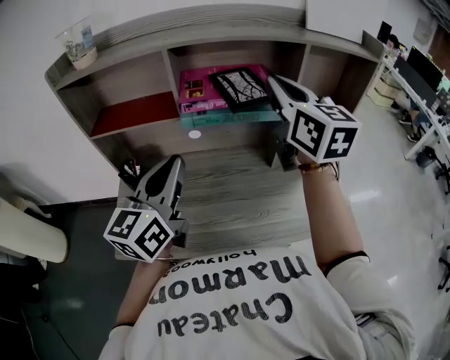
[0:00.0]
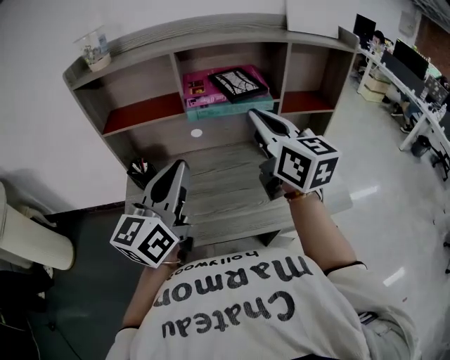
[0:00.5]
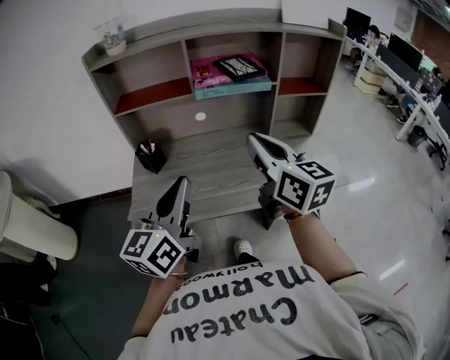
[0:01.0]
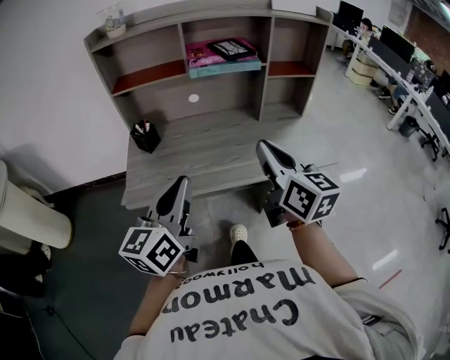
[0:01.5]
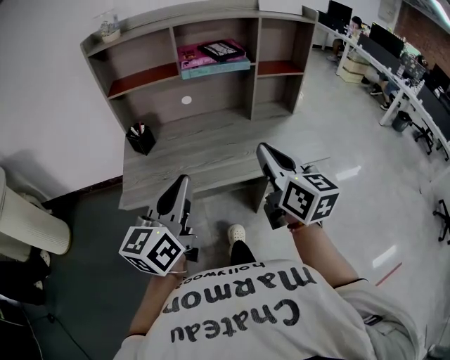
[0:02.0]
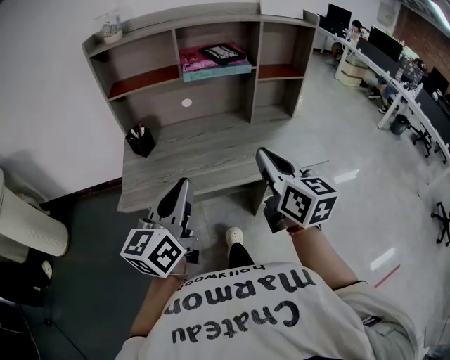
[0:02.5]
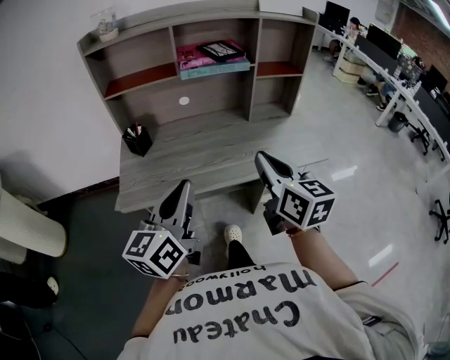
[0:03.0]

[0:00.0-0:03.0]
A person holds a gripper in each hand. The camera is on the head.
0:00.0 to 0:01.5: Both grippers travel together backward, some 30 cm.
0:01.5 to 0:03.0: The grippers move only a little.

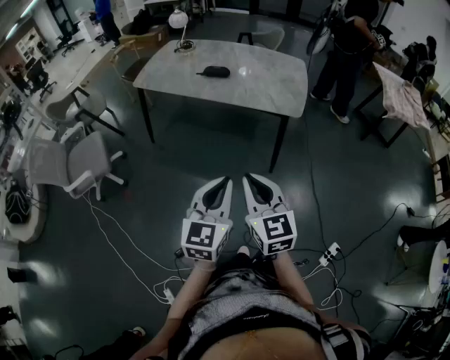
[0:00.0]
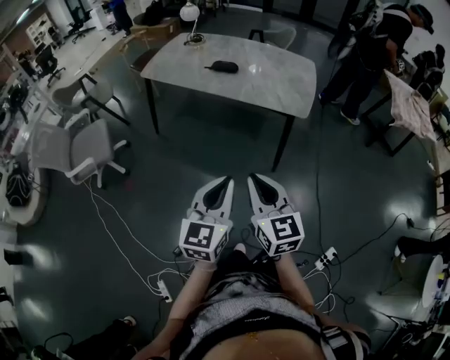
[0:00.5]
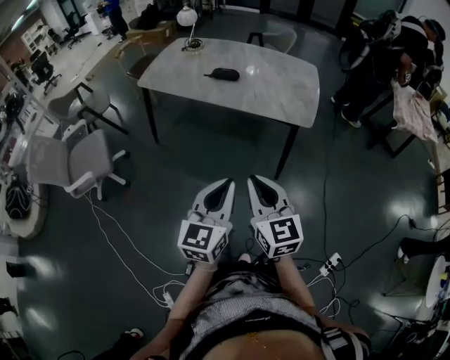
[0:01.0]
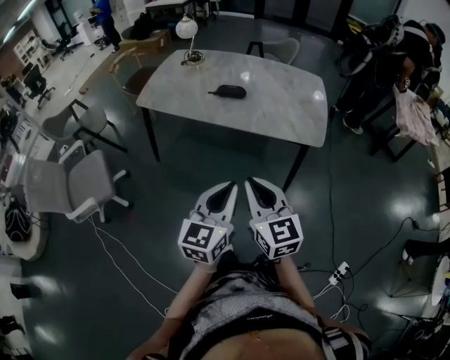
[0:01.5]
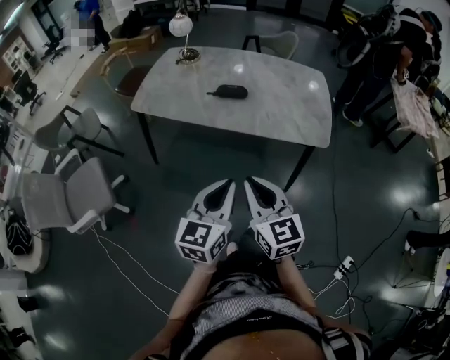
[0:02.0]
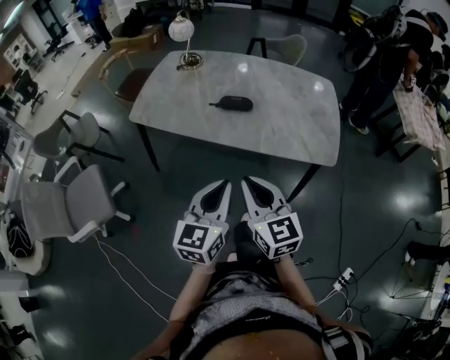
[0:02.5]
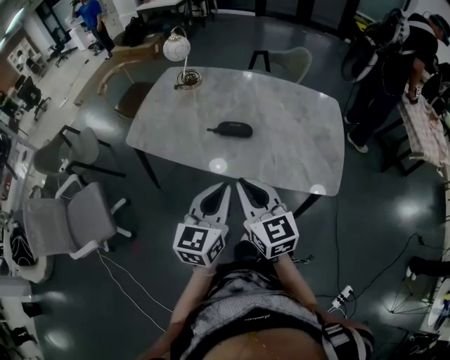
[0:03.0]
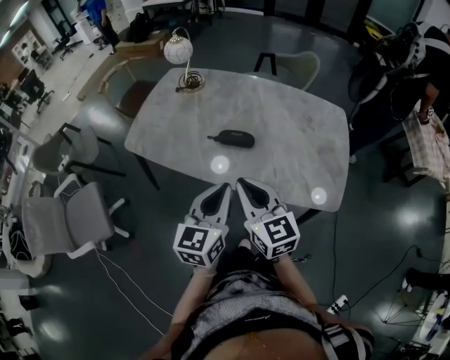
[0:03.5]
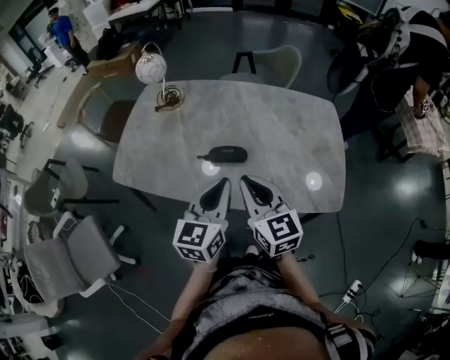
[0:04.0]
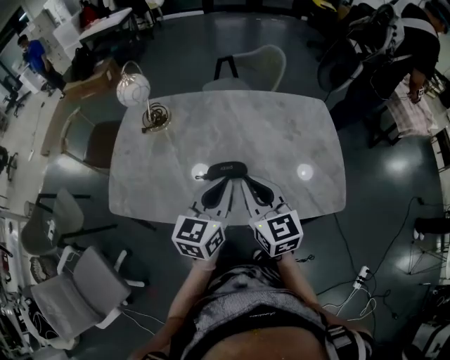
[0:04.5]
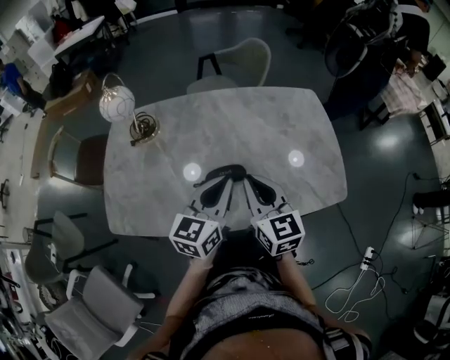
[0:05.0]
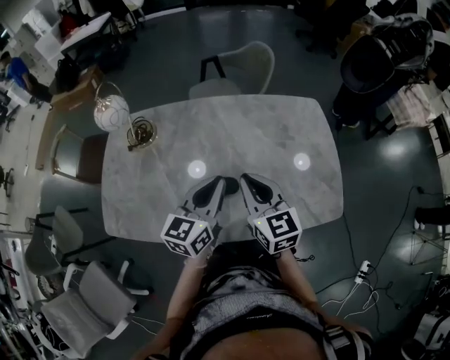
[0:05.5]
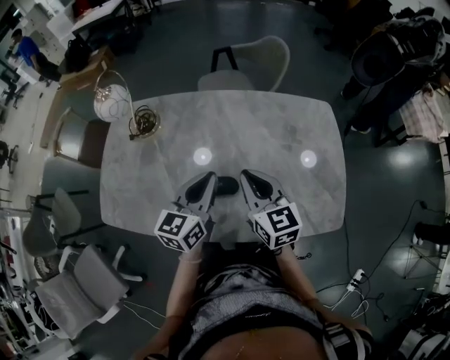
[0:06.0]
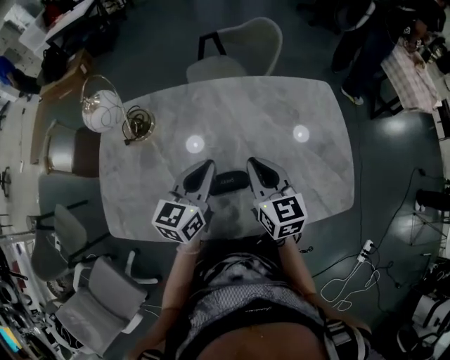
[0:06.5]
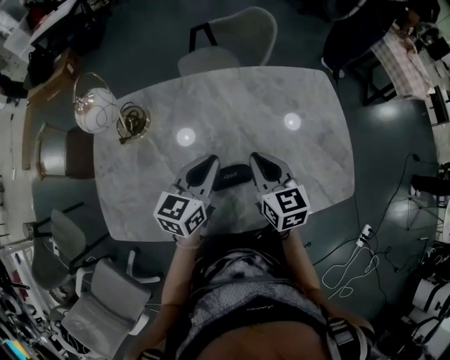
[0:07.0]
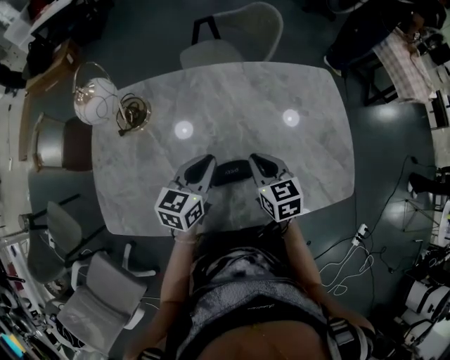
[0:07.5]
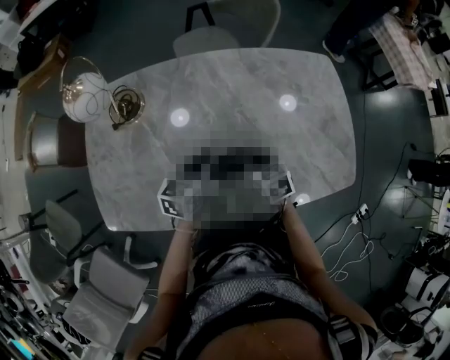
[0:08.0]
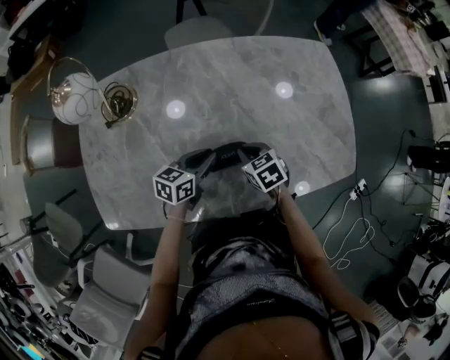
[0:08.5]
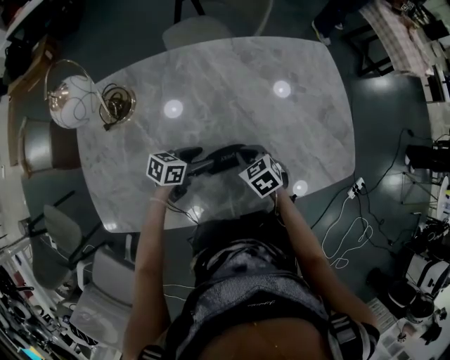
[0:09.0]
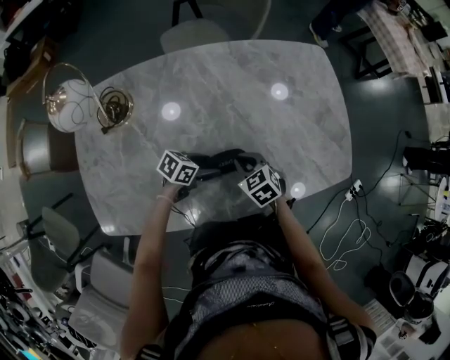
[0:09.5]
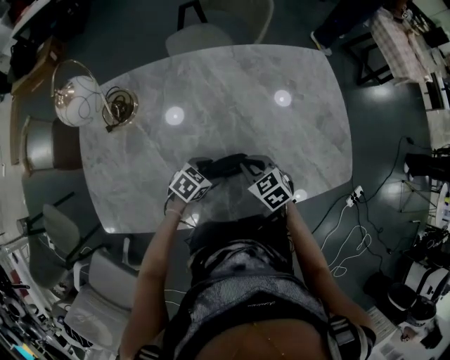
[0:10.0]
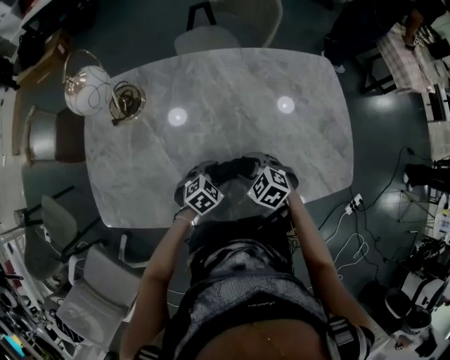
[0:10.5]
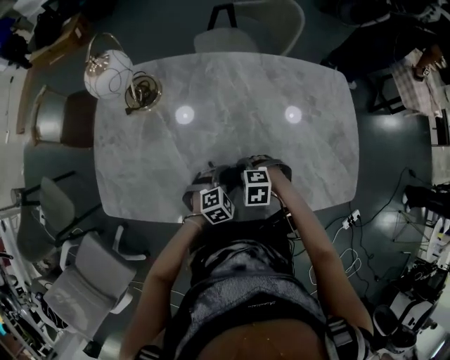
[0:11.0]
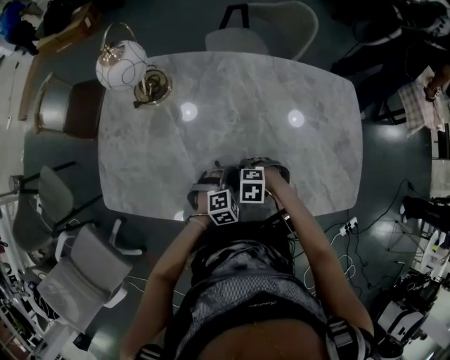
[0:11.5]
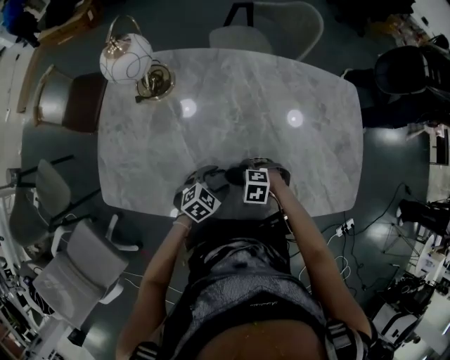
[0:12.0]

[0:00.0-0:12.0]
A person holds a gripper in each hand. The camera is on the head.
0:00.0 to 0:02.0: Both grippers move forward and to the left, some 25 cm.
0:02.0 to 0:04.0: The two grippers go some 35 cm forward.
0:04.0 to 0:06.0: Both grippers travel together forward, roughly 20 cm.
0:06.0 to 0:08.0: The right gripper moves downward, about 20 cm, and points its fingers approximately 30 degrees further downward. Meanwhile the left gripper shifts some 15 cm downward and to the left, and turns by roughly 20 degrees.
0:08.0 to 0:10.0: The left gripper goes some 10 cm downward, rotates some 40 degrees, and opens.
0:10.0 to 0:12.0: The left gripper ends up about 5 cm from where it was. Meanwhile the right gripper is displaced downward by roughly 10 cm, changes its angle by some 60 degrees, and opens up.

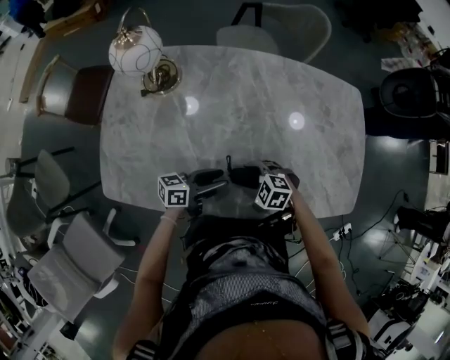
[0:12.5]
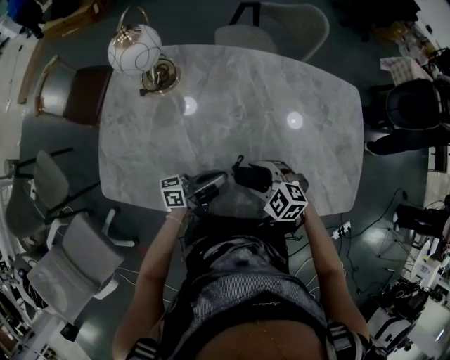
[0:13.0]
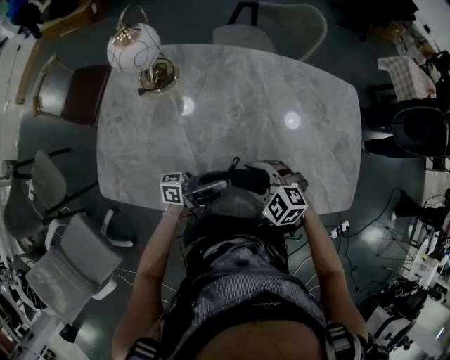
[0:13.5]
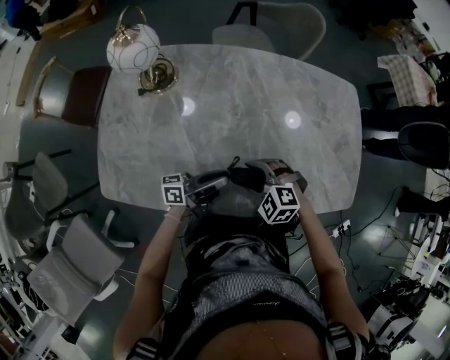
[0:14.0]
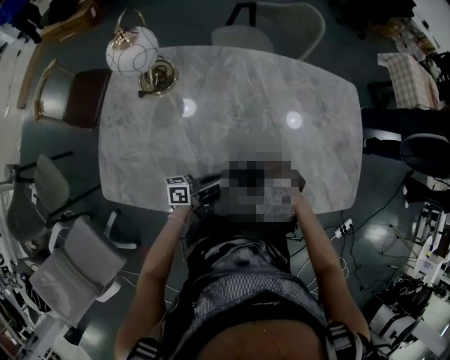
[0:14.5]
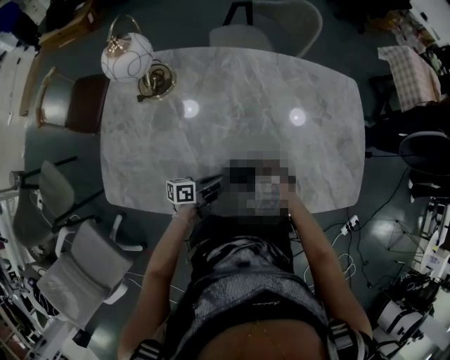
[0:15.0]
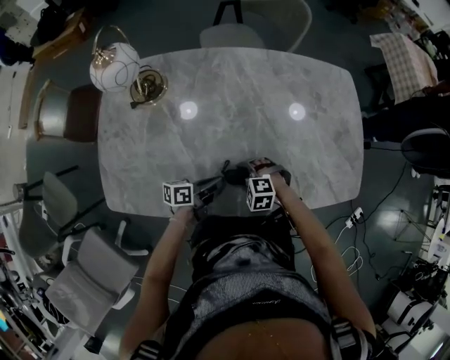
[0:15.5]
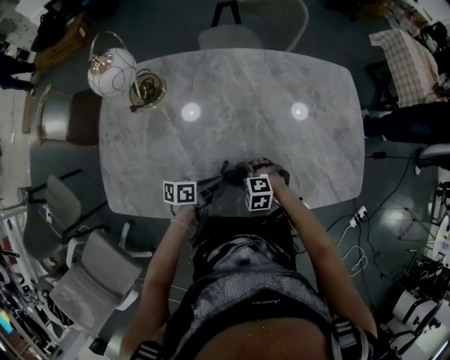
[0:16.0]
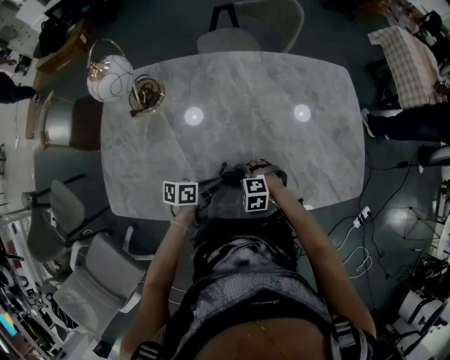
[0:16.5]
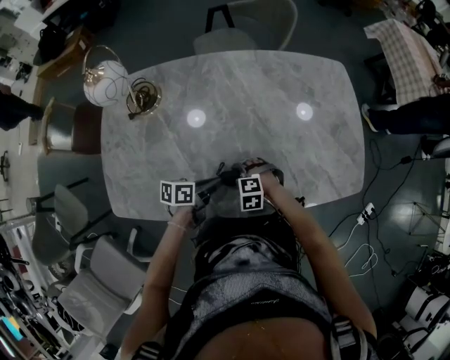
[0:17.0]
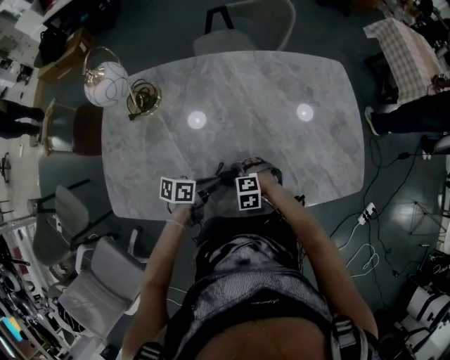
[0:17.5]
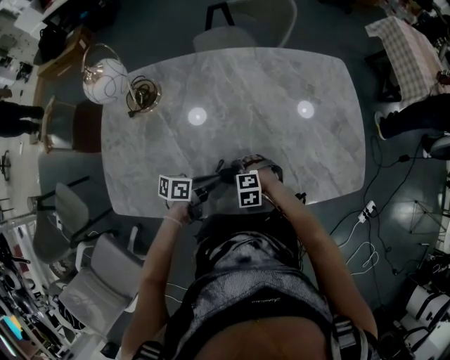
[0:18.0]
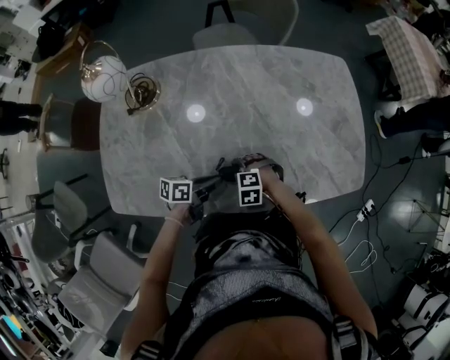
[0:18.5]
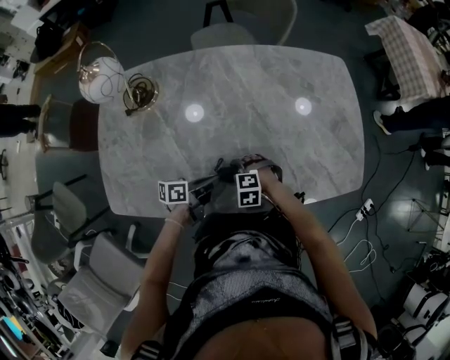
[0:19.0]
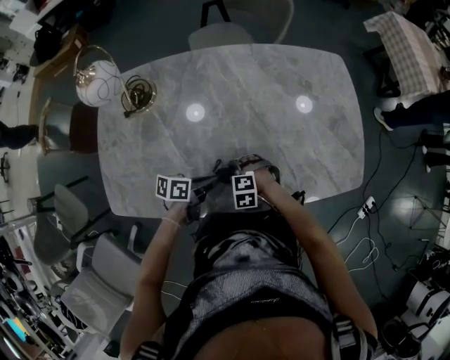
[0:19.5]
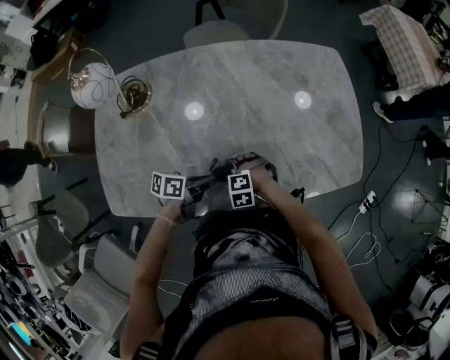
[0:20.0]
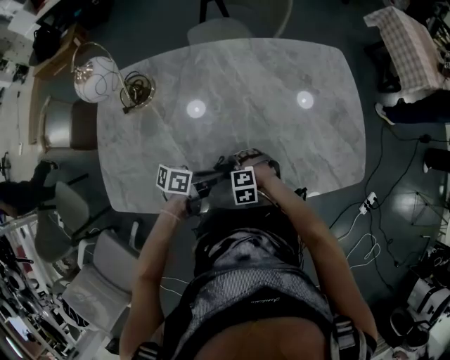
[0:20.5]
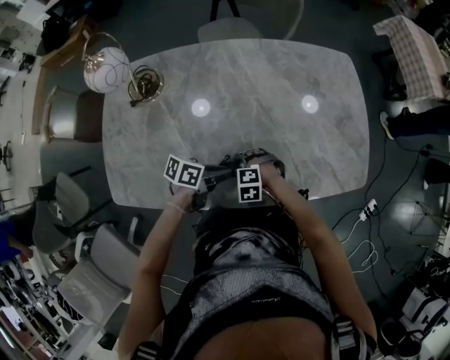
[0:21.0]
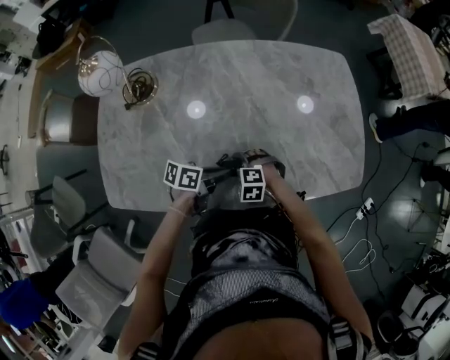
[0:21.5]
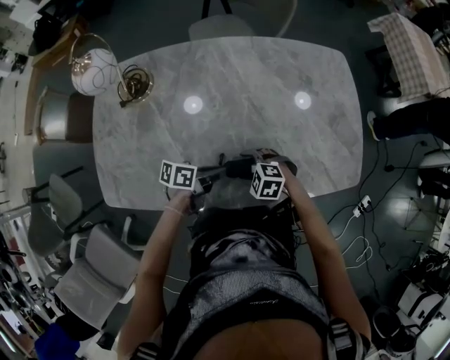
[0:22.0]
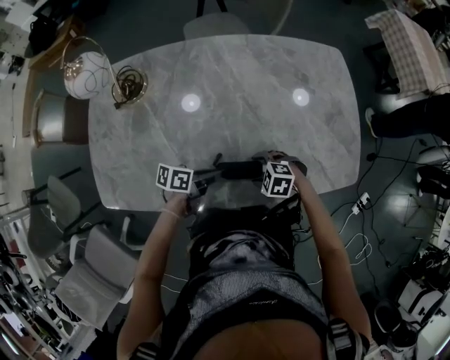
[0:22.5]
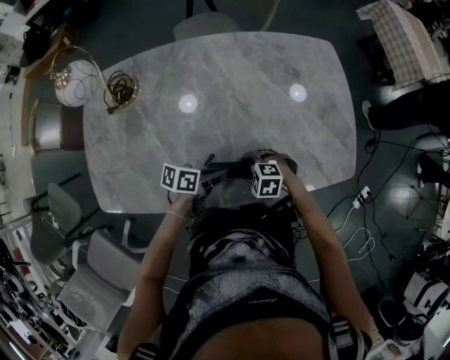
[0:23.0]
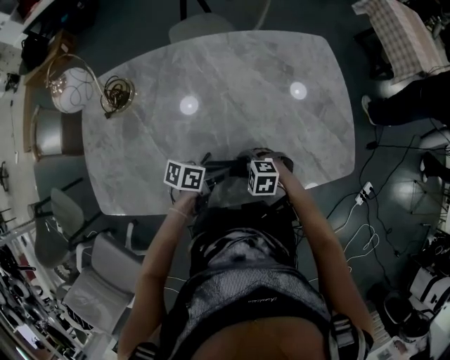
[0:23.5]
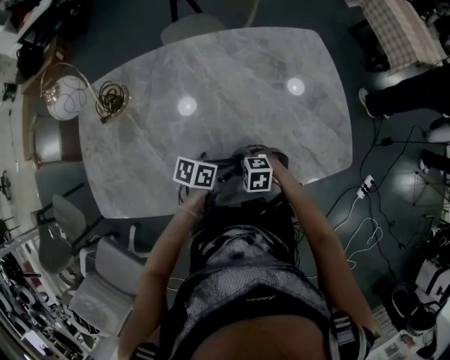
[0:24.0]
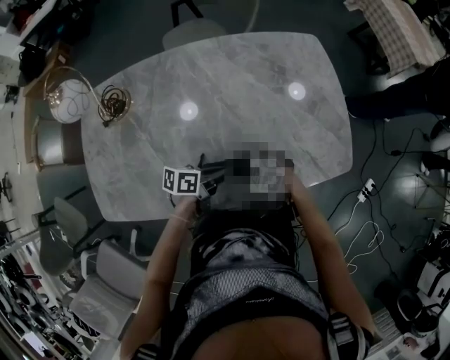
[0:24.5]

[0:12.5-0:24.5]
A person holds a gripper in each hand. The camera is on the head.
0:12.5 to 0:14.5: The left gripper closes.
0:14.5 to 0:16.5: The left gripper points its fingers roughly 40 degrees further downward; the right gripper goes roughly 5 cm downward.
0:16.5 to 0:20.5: There are only small adjustments of the grippers.
0:20.5 to 0:22.5: The right gripper moves approximately 10 cm, and swivels approximately 20 degrees.
0:22.5 to 0:24.5: The left gripper changes place by about 10 cm.
